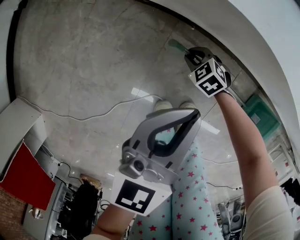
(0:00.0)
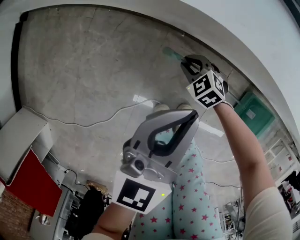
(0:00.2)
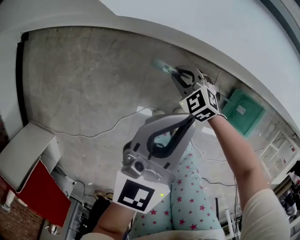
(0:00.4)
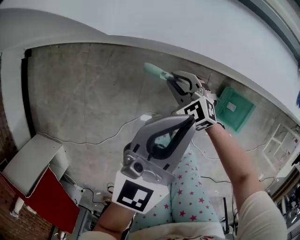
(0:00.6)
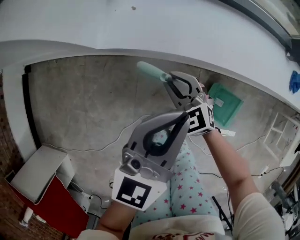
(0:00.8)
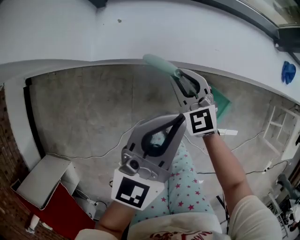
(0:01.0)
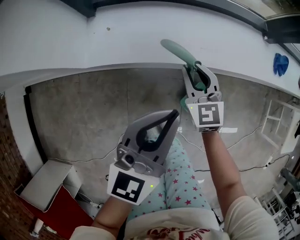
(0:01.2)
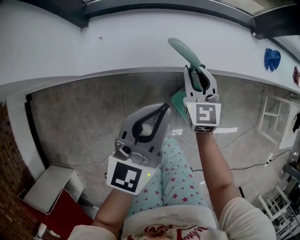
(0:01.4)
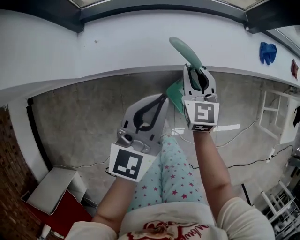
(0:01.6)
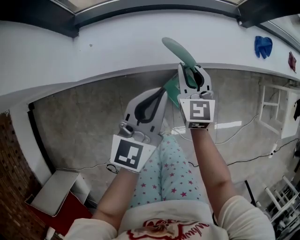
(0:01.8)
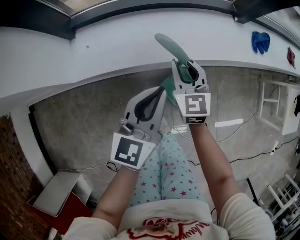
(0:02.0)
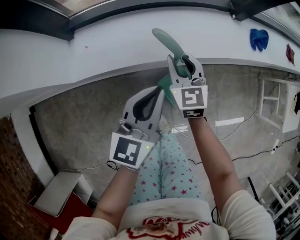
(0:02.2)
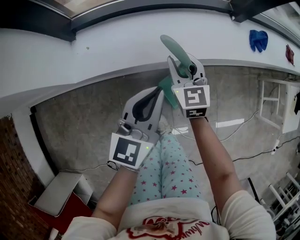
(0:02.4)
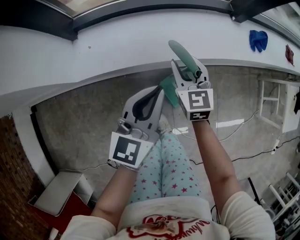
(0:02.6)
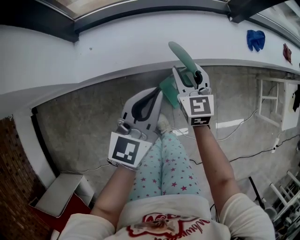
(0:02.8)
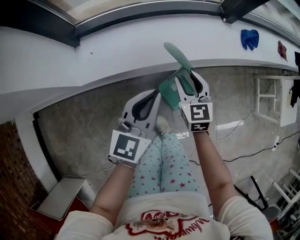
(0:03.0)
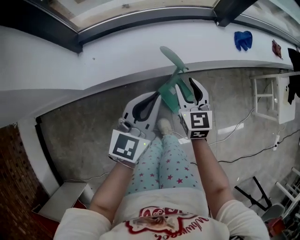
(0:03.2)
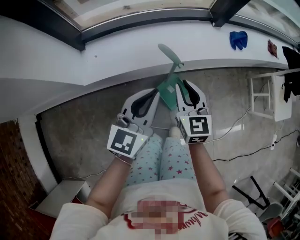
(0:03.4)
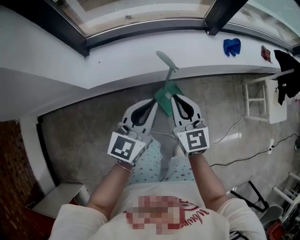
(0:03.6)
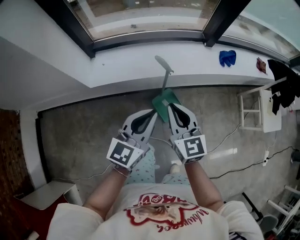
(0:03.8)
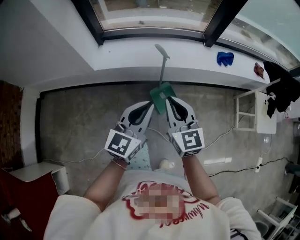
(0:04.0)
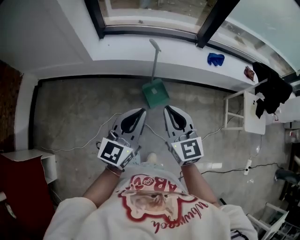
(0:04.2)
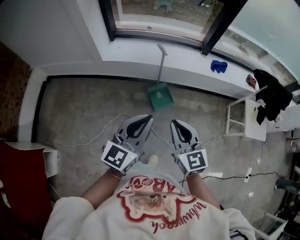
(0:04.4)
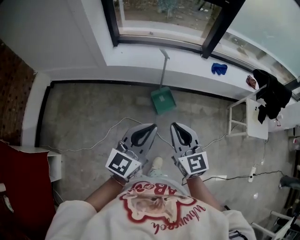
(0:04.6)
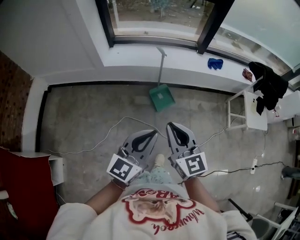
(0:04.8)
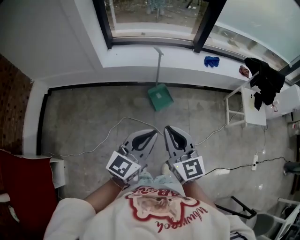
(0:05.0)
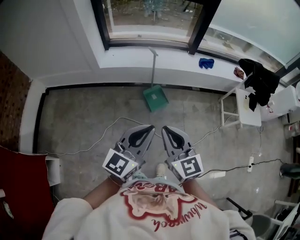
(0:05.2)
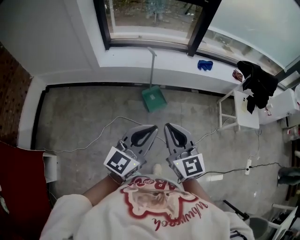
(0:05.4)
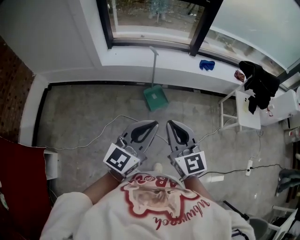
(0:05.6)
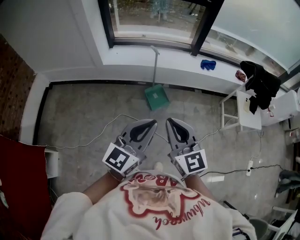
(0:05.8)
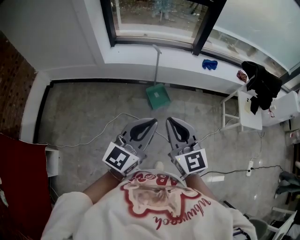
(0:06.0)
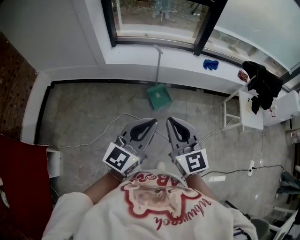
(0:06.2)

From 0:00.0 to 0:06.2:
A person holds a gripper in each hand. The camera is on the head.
From 0:00.0 to 0:01.6: The right gripper goes some 50 cm upward, and points its fingers roughly 40 degrees further upward, while the left gripper shifts approximately 25 cm upward, and turns by roughly 30 degrees.
From 0:01.6 to 0:03.2: The right gripper shifts approximately 10 cm backward, to the right and upward, and opens its fingers; the left gripper is displaced upward by roughly 5 cm.
From 0:03.2 to 0:04.6: Both grippers are carried backward, some 50 cm. The grippers both shift upward by about 25 cm. The right gripper rotates roughly 30 degrees, and closes.
From 0:04.6 to 0:06.2: The left gripper heads backward, covering roughly 10 cm. The right gripper is displaced backward and upward by approximately 15 cm.

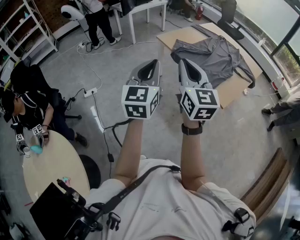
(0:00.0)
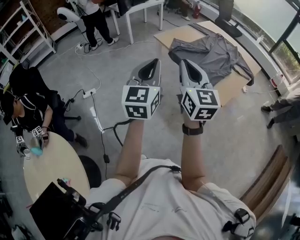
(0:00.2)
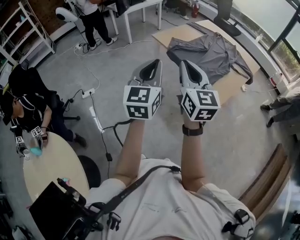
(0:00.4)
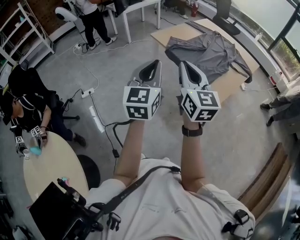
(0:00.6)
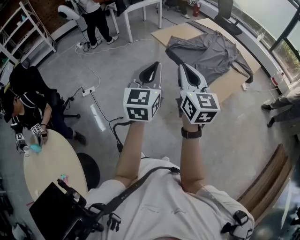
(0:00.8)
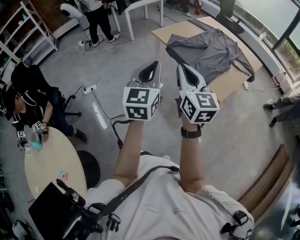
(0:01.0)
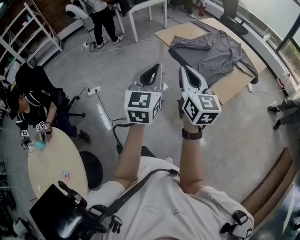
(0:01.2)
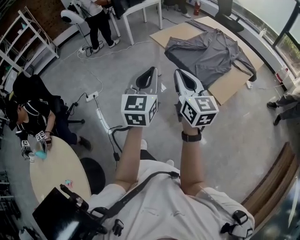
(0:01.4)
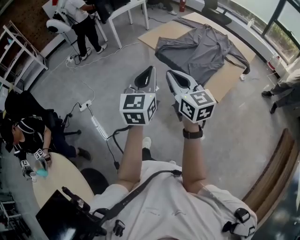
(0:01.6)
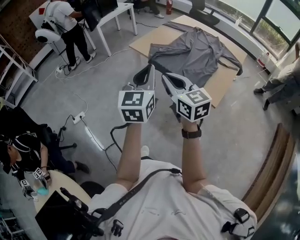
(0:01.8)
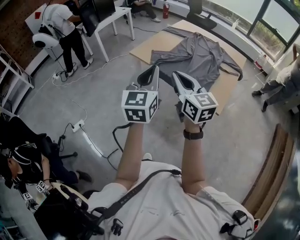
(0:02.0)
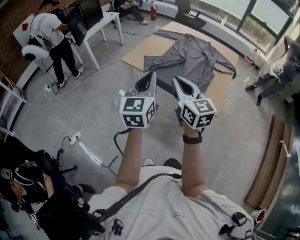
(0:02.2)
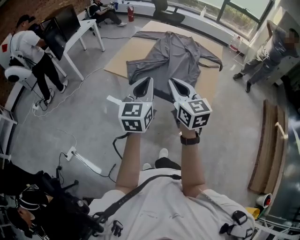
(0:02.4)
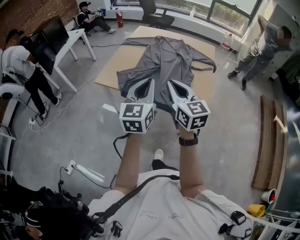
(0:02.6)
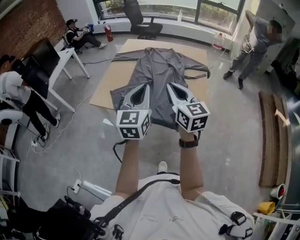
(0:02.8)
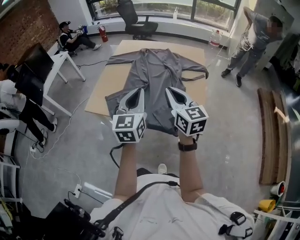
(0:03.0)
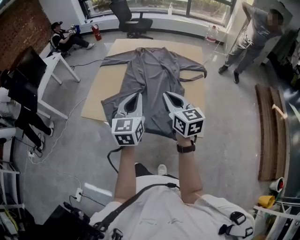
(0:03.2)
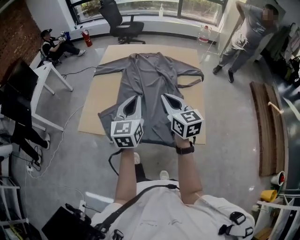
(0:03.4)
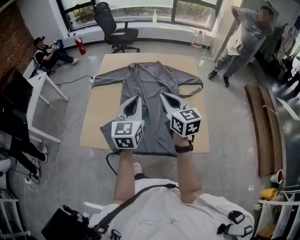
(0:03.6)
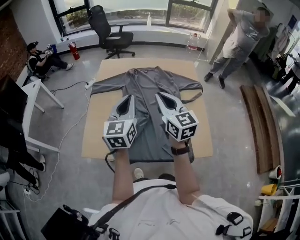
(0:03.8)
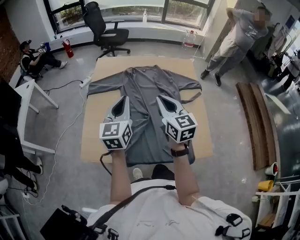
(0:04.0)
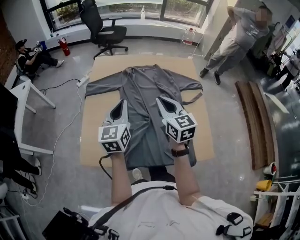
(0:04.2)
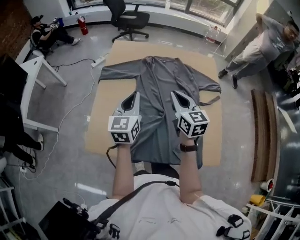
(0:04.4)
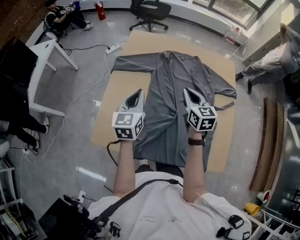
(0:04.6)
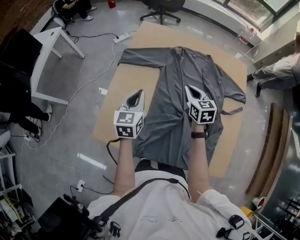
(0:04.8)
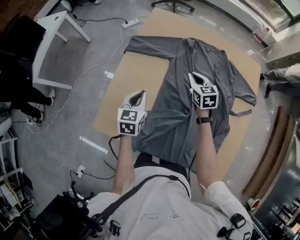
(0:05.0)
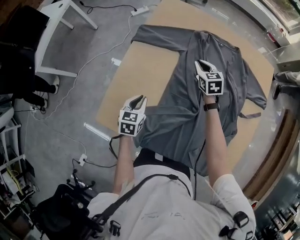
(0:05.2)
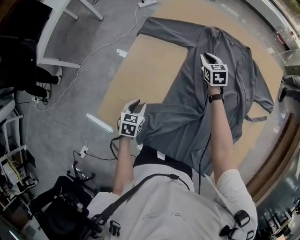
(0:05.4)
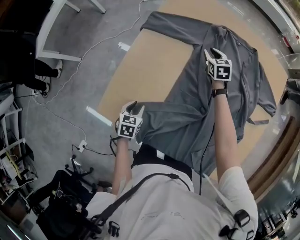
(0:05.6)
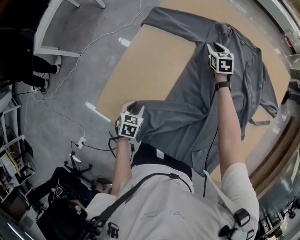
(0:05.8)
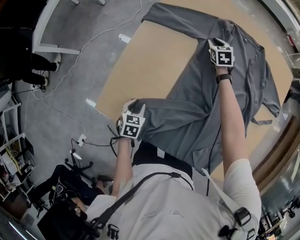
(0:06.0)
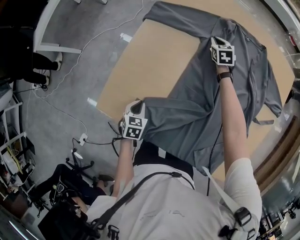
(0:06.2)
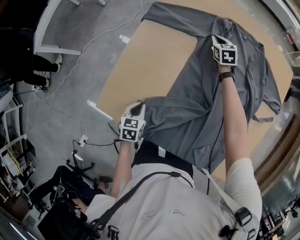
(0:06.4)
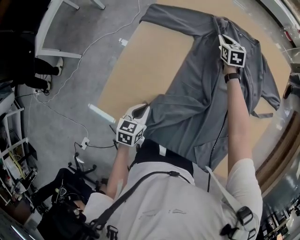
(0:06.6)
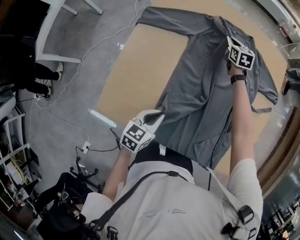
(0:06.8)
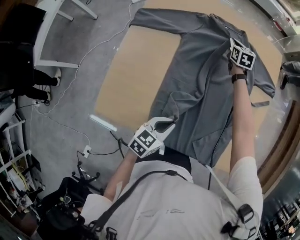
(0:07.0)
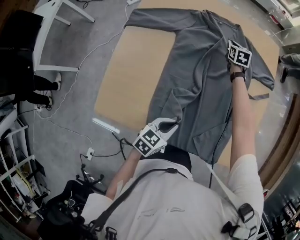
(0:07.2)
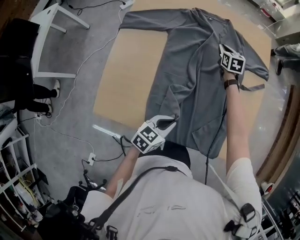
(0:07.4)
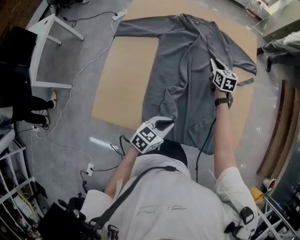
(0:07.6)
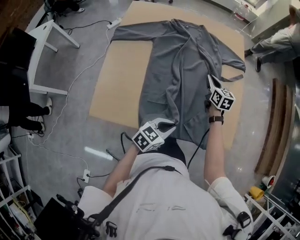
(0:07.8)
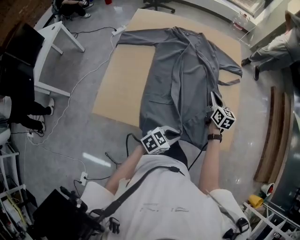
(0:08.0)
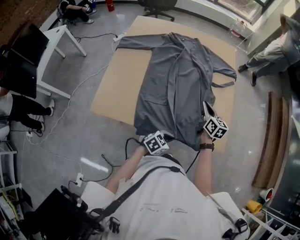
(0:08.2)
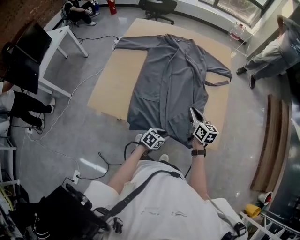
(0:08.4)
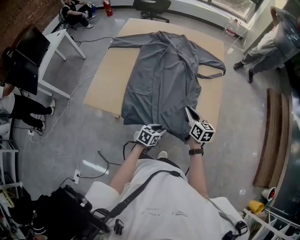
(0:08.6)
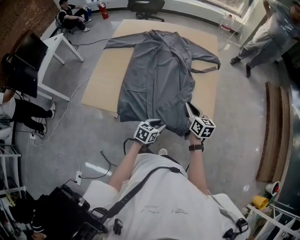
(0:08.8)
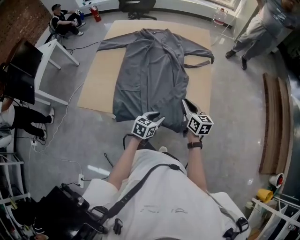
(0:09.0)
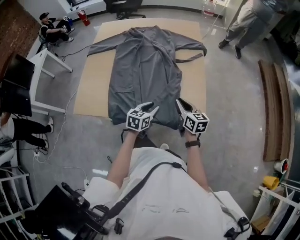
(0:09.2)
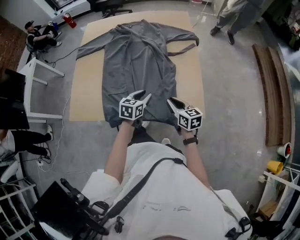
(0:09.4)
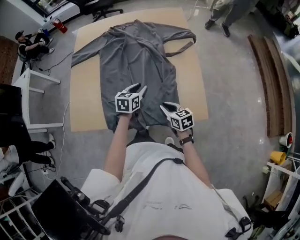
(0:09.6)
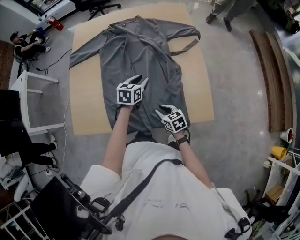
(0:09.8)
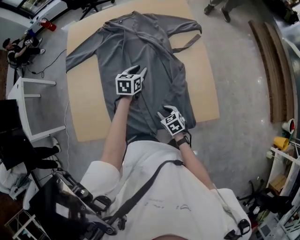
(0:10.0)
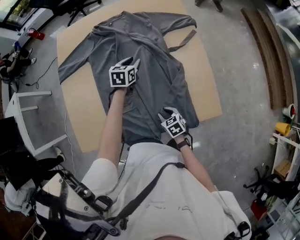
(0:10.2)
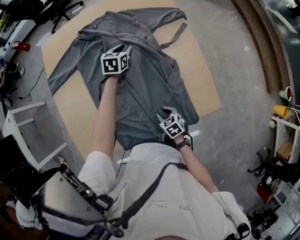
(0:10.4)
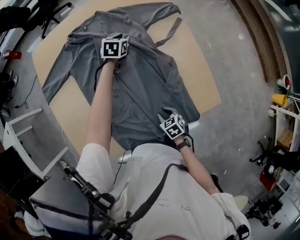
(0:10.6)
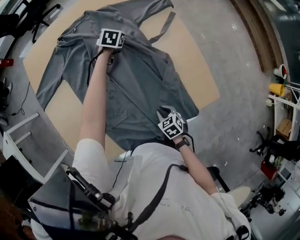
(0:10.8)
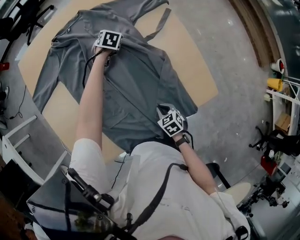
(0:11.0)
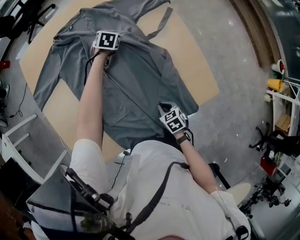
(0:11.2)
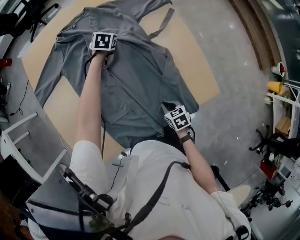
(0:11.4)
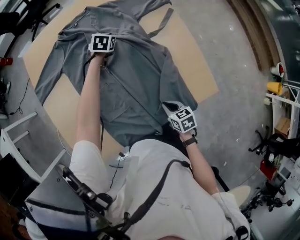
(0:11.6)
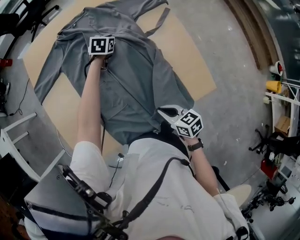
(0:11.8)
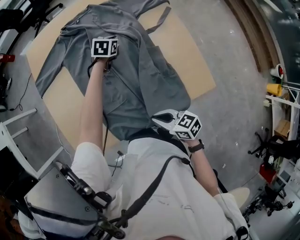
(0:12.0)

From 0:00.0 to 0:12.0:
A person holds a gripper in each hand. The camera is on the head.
From 0:00.0 to 0:01.6: The left gripper is displaced to the right by some 10 cm. Meanwhile the right gripper moves downward, some 10 cm.
From 0:01.6 to 0:03.0: The left gripper ends up about 35 cm from where it was, and turns by approximately 30 degrees; the right gripper moves approximately 35 cm, and rotates about 40 degrees.
From 0:03.0 to 0:04.4: The right gripper moves forward, some 30 cm. Meanwhile the left gripper shifts some 35 cm forward and to the left.
From 0:04.4 to 0:06.0: The right gripper goes roughly 50 cm downward and forward, and tips its fingers downward by roughly 30 degrees. The left gripper is displaced downward and to the left by about 40 cm, points its fingers some 50 degrees further downward, and opens up.
From 0:06.0 to 0:07.6: The right gripper shifts by some 30 cm, and changes its angle by about 30 degrees. The left gripper changes place by some 30 cm, tilts its fingers some 30 degrees upward, and closes up.
From 0:07.6 to 0:09.0: The left gripper goes about 20 cm to the right, and opens, while the right gripper travels backward and to the right by about 40 cm, and rotates about 20 degrees.
From 0:09.0 to 0:10.4: The right gripper heads downward and to the left, covering some 25 cm, and tilts its fingers some 40 degrees downward. The left gripper goes about 50 cm forward.
From 0:10.4 to 0:12.0: The left gripper closes up, while the right gripper moves upward and backward, about 15 cm, and swivels approximately 30 degrees.

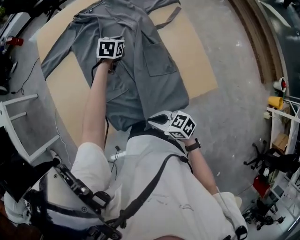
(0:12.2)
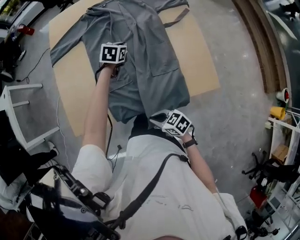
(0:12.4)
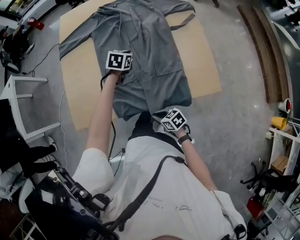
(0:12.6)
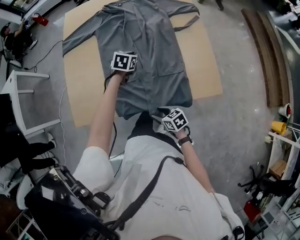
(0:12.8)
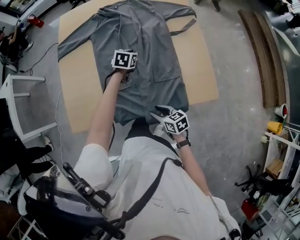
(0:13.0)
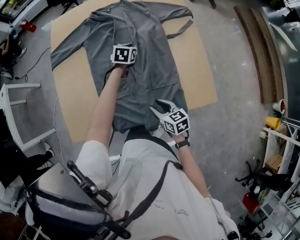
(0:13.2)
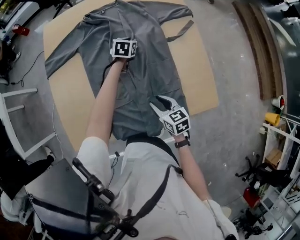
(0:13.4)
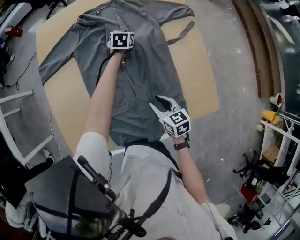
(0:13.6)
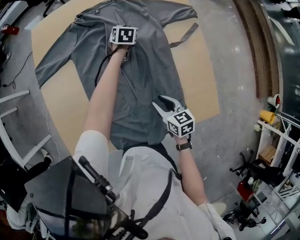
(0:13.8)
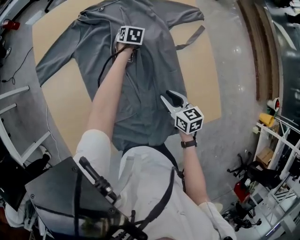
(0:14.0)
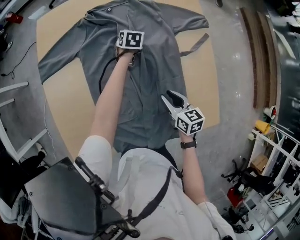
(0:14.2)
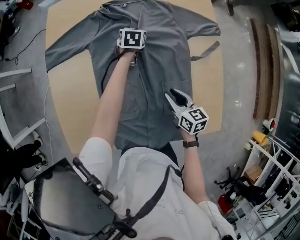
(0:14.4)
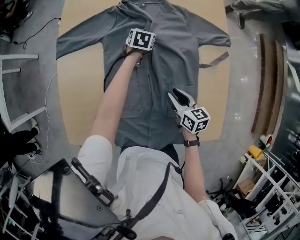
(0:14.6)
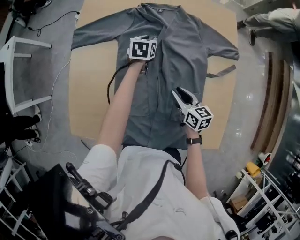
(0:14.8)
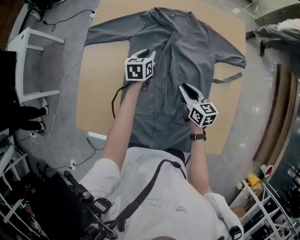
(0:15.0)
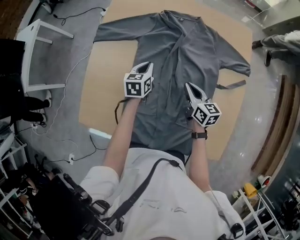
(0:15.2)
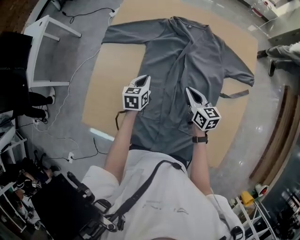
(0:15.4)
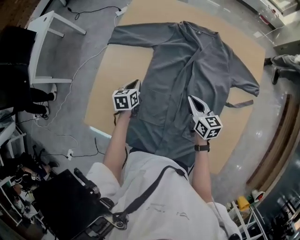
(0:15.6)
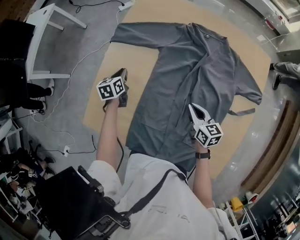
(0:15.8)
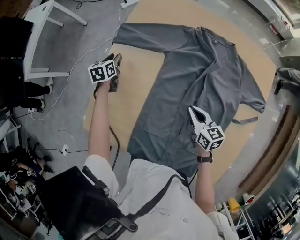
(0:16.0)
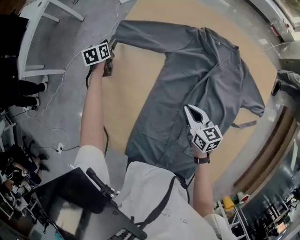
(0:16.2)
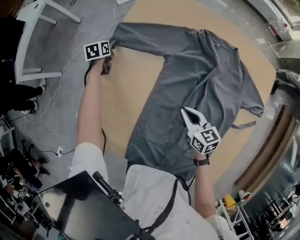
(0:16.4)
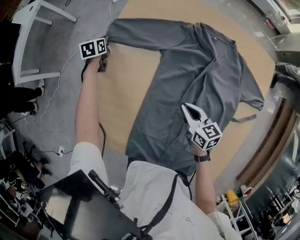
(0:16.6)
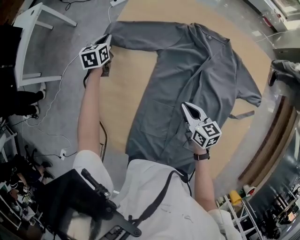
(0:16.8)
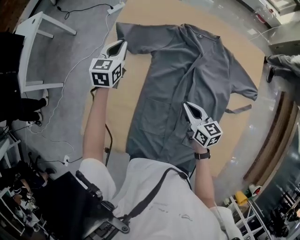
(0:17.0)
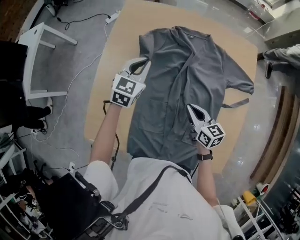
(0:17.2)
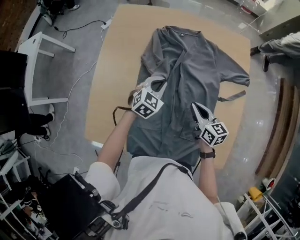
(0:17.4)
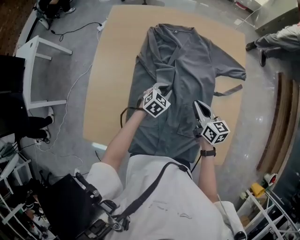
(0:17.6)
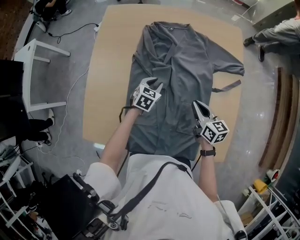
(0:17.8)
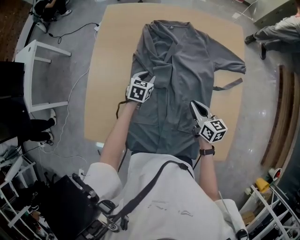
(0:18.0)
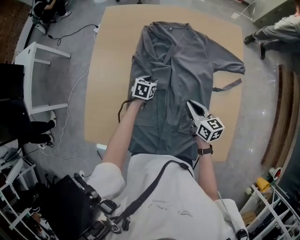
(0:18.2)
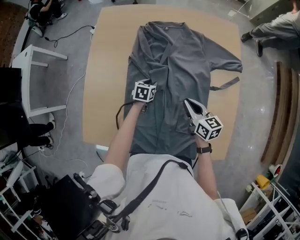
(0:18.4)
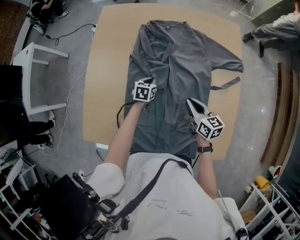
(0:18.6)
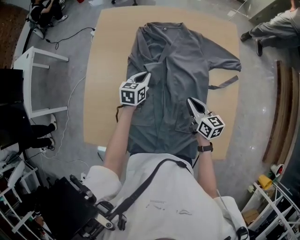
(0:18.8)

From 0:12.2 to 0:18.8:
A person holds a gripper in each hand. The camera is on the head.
From 0:12.2 to 0:13.8: The right gripper moves forward and to the right, roughly 20 cm, and changes its angle by roughly 30 degrees. The left gripper moves forward and downward, approximately 20 cm.
From 0:13.8 to 0:15.4: The left gripper moves to the left and backward, approximately 30 cm, swivels approximately 30 degrees, and closes its fingers. Meanwhile the right gripper heads forward, covering approximately 15 cm, turns by some 20 degrees, and closes its fingers.
From 0:15.4 to 0:17.2: The left gripper shifts roughly 15 cm forward and upward, rotates about 30 degrees, and opens, then closes once more; the right gripper goes to the left and returns, about 10 cm each way.
From 0:17.2 to 0:18.8: The left gripper moves downward, to the right and backward, about 15 cm, turns by some 20 degrees, and opens, then closes once more. The right gripper heads to the right, covering roughly 10 cm.
